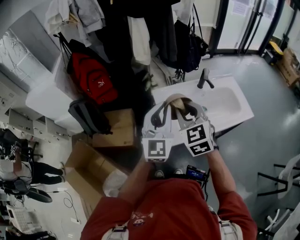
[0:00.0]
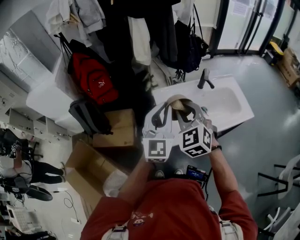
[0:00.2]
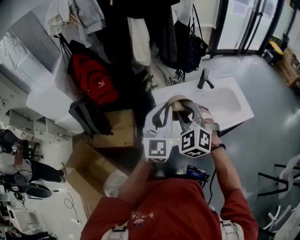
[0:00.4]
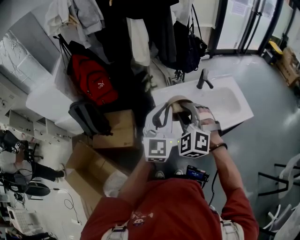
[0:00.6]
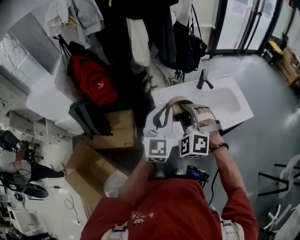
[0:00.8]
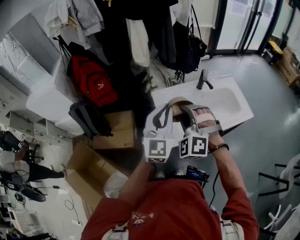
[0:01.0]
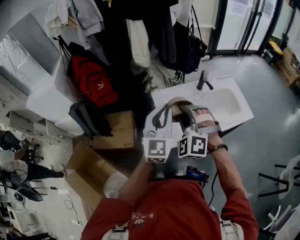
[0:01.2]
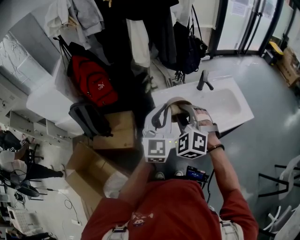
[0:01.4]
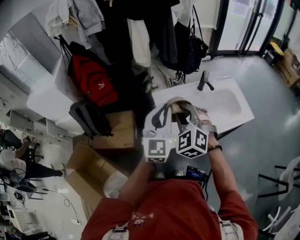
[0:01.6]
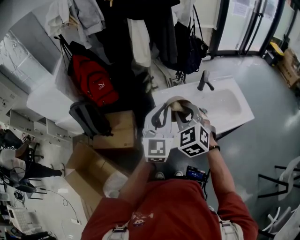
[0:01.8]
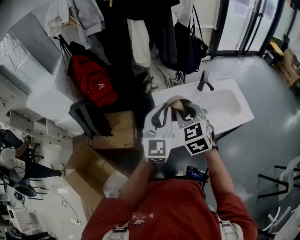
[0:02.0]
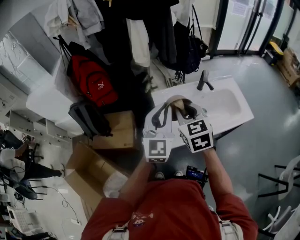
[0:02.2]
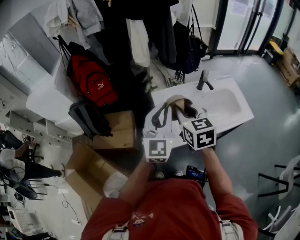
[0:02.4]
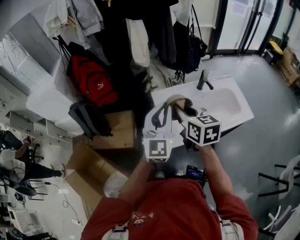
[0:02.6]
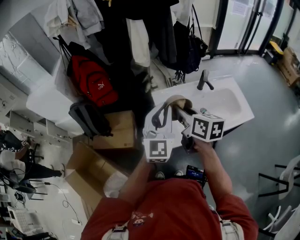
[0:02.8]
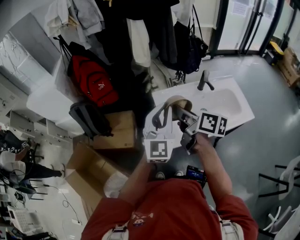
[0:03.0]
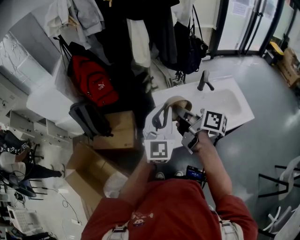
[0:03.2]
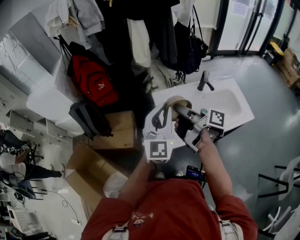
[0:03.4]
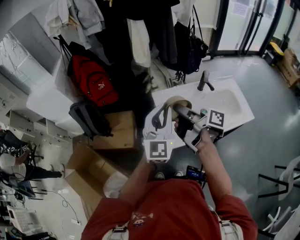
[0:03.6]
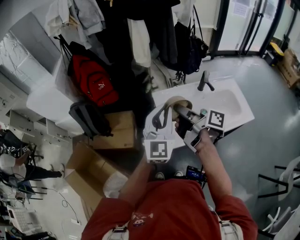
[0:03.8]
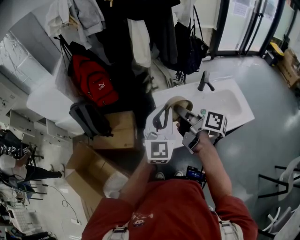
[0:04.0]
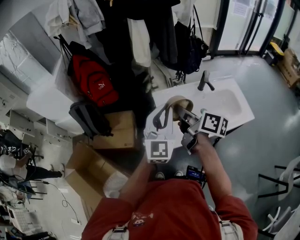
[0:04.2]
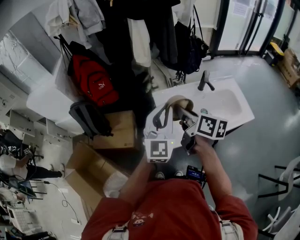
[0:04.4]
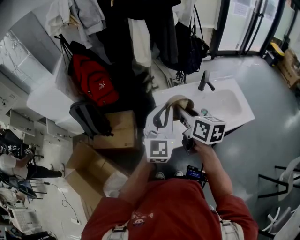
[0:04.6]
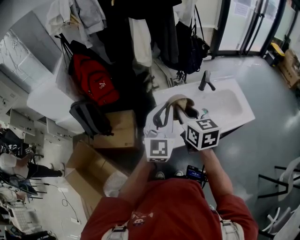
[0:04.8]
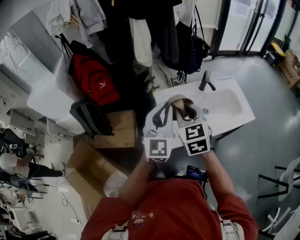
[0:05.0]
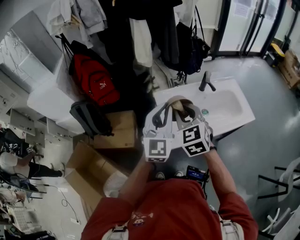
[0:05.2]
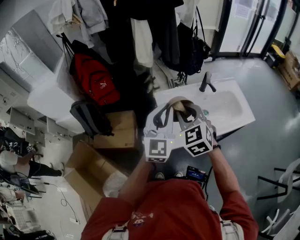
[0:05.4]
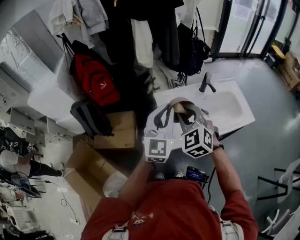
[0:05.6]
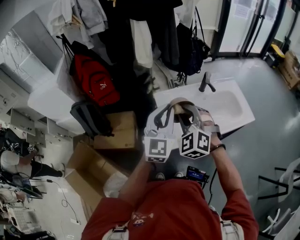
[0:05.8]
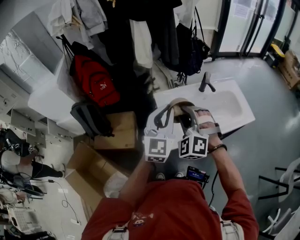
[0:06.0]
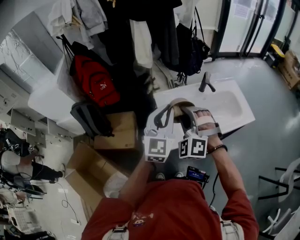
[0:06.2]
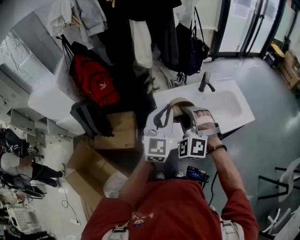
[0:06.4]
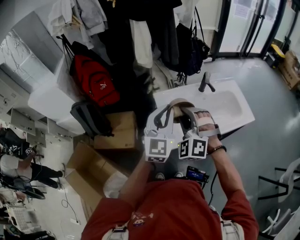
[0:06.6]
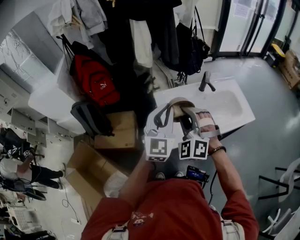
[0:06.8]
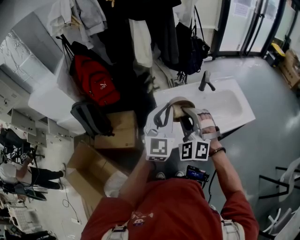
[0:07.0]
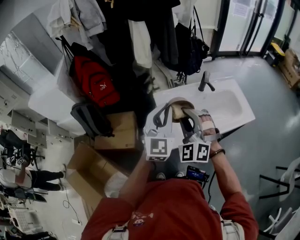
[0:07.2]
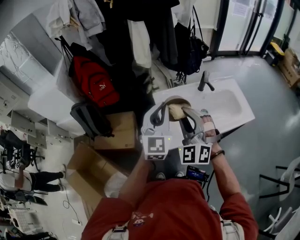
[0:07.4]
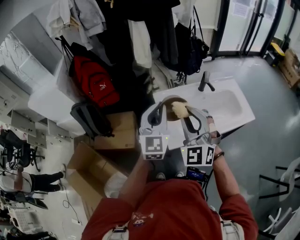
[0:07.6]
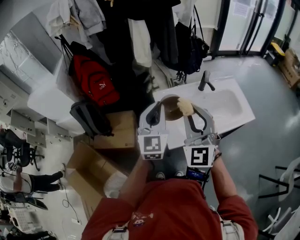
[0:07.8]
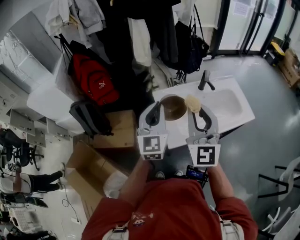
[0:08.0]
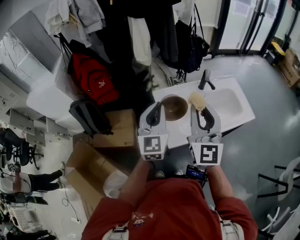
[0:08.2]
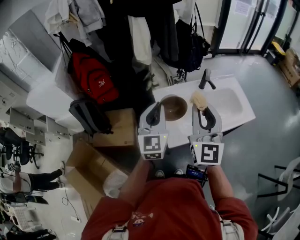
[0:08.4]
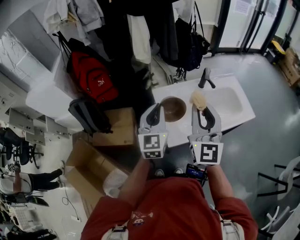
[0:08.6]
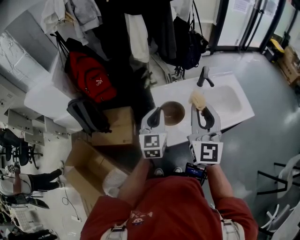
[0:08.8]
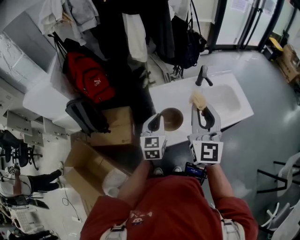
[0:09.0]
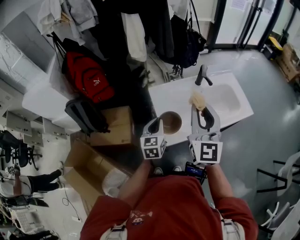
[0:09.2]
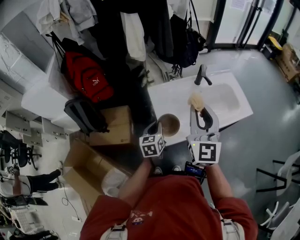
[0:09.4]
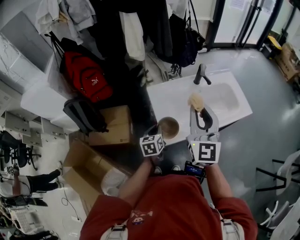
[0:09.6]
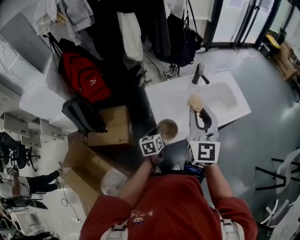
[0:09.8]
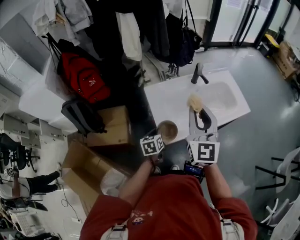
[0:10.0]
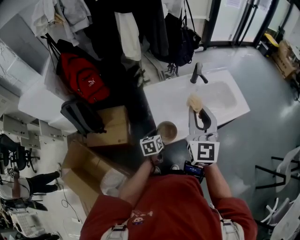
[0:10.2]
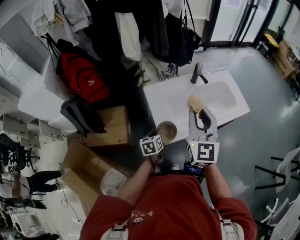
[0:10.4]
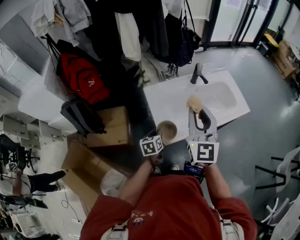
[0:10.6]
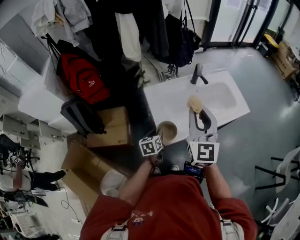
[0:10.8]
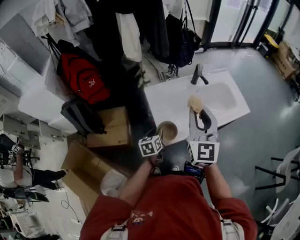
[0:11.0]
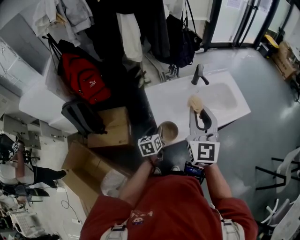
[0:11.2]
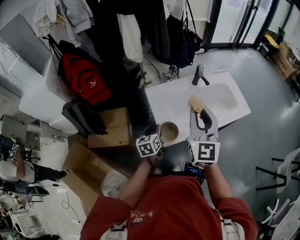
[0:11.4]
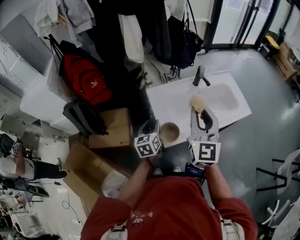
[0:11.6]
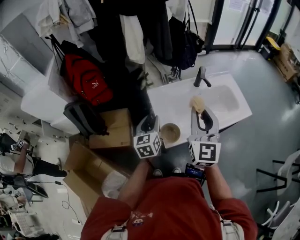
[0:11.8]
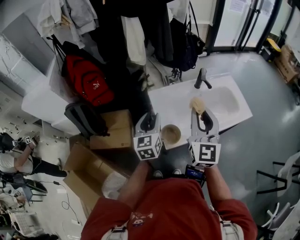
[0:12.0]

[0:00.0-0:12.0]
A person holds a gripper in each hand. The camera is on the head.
0:00.0 to 0:01.6: The right gripper swivels roughly 30 degrees.
0:01.6 to 0:03.0: The right gripper rotates around the line of its fingers by about 90 degrees, clockwise from behind.
0:04.4 to 0:06.0: The right gripper twists about 110 degrees counterclockwise, seen from behind.
0:06.0 to 0:07.6: The right gripper shifts some 5 cm upward, and changes its angle by approximately 30 degrees.
0:07.6 to 0:09.0: The right gripper heads to the right, covering about 5 cm, and swivels about 40 degrees; the left gripper heads downward, covering some 15 cm, and rotates about 20 degrees.
0:09.0 to 0:10.4: The left gripper heads downward, covering some 15 cm, and changes its angle by some 40 degrees.
0:10.4 to 0:12.0: The left gripper is displaced upward by approximately 20 cm, swivels some 30 degrees, and opens up.

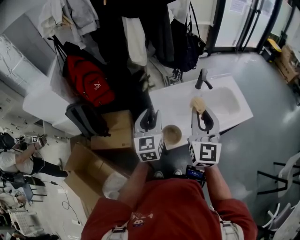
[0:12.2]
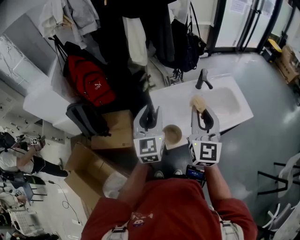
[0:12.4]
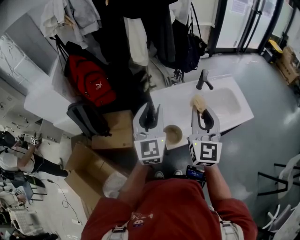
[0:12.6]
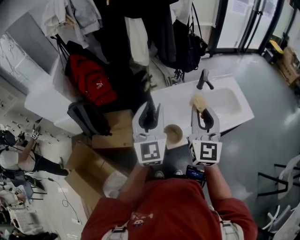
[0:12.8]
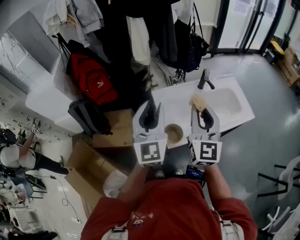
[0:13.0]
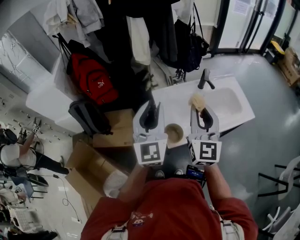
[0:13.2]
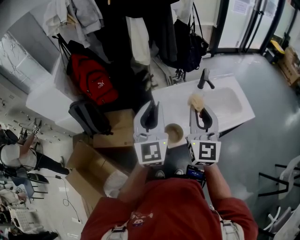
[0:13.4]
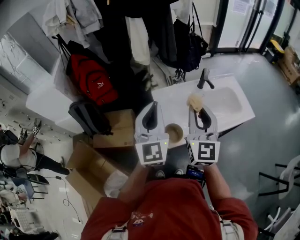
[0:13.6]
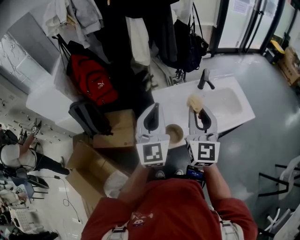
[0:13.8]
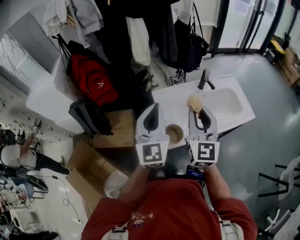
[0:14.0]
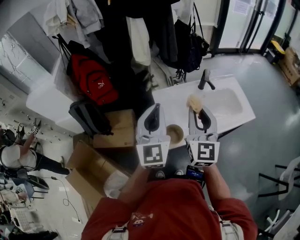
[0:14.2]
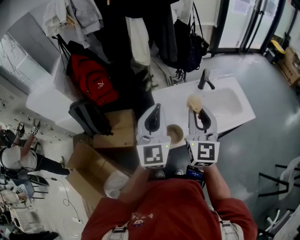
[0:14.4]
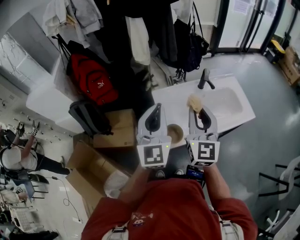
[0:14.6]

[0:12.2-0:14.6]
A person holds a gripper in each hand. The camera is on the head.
0:12.2 to 0:13.4: The left gripper goes some 10 cm upward.
0:13.4 to 0:14.6: The grippers move only a little.

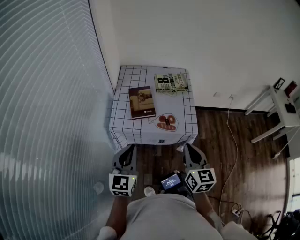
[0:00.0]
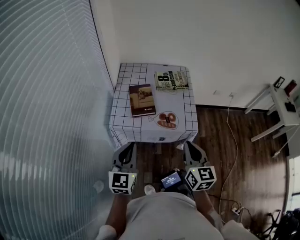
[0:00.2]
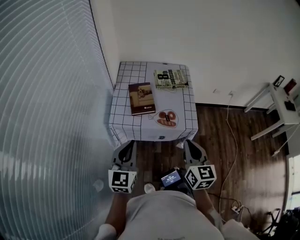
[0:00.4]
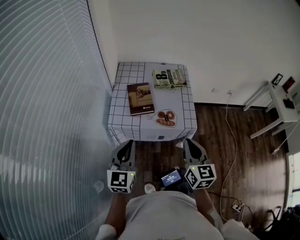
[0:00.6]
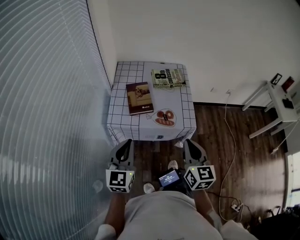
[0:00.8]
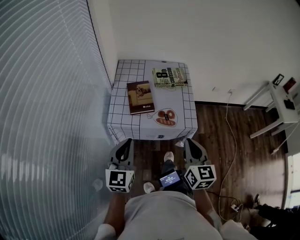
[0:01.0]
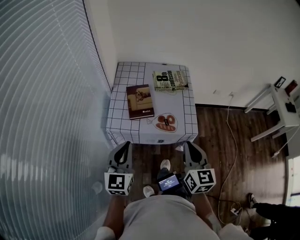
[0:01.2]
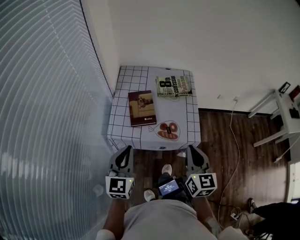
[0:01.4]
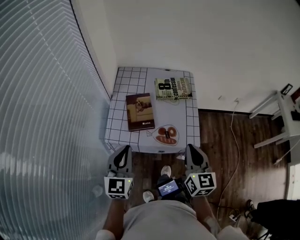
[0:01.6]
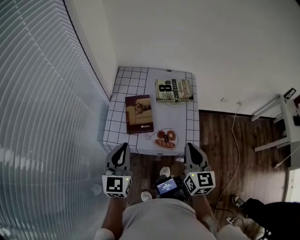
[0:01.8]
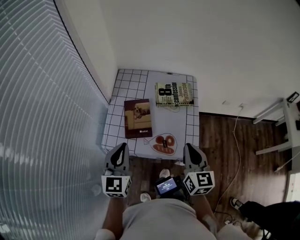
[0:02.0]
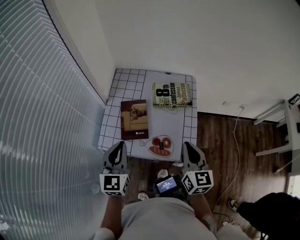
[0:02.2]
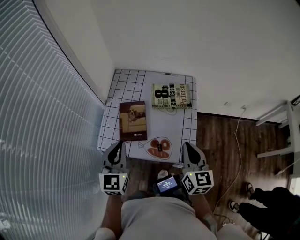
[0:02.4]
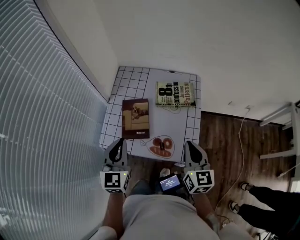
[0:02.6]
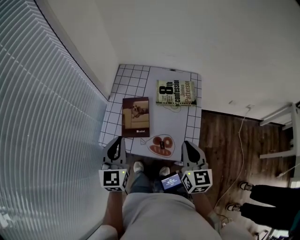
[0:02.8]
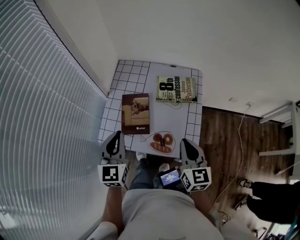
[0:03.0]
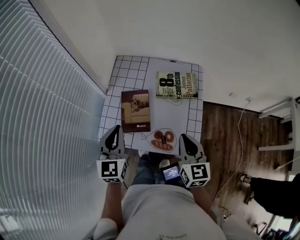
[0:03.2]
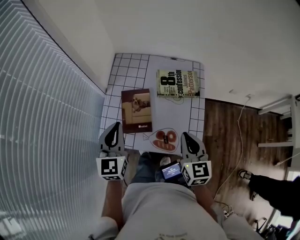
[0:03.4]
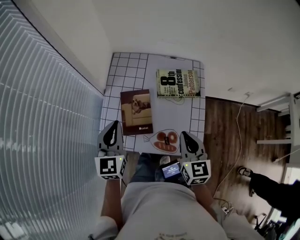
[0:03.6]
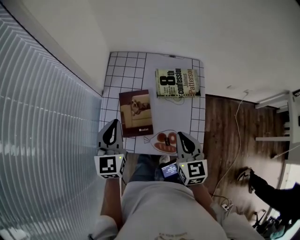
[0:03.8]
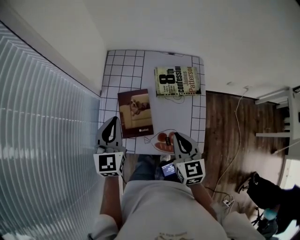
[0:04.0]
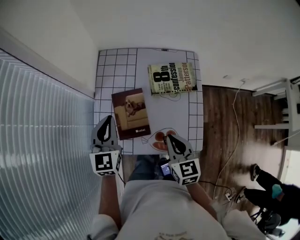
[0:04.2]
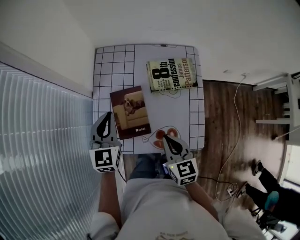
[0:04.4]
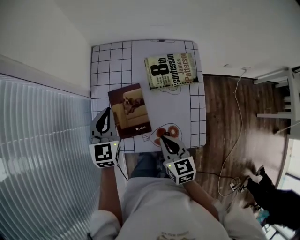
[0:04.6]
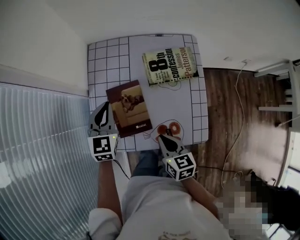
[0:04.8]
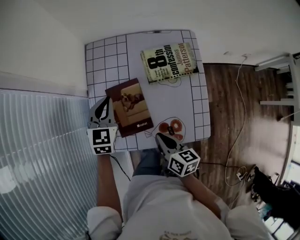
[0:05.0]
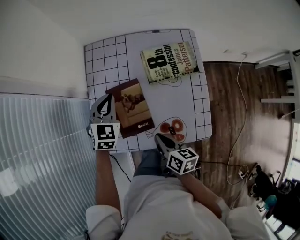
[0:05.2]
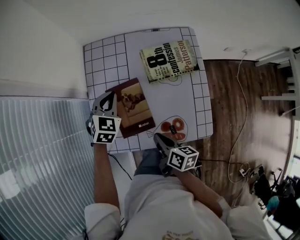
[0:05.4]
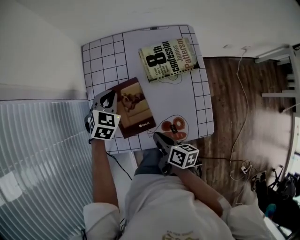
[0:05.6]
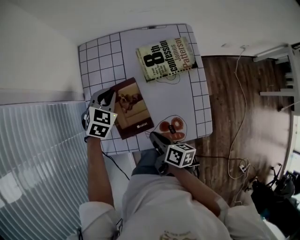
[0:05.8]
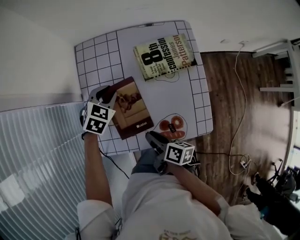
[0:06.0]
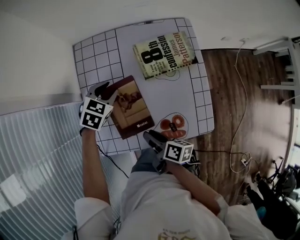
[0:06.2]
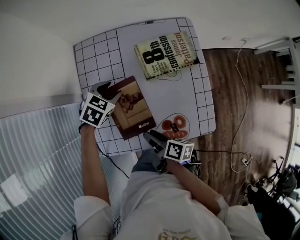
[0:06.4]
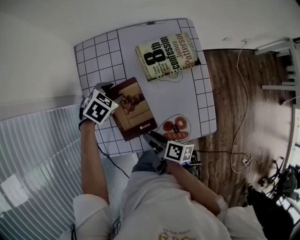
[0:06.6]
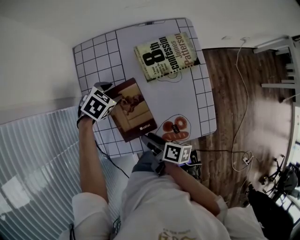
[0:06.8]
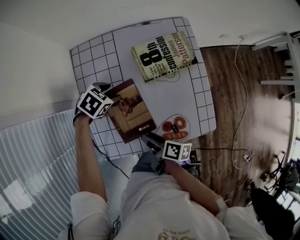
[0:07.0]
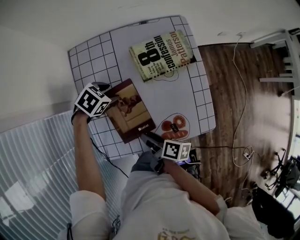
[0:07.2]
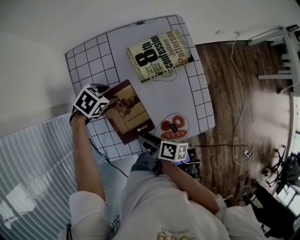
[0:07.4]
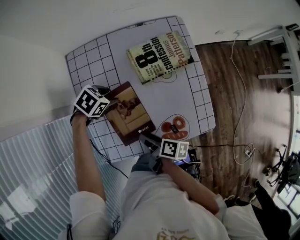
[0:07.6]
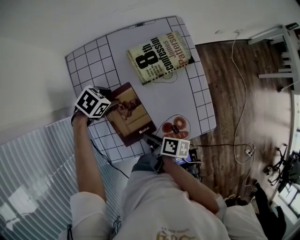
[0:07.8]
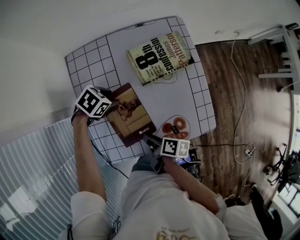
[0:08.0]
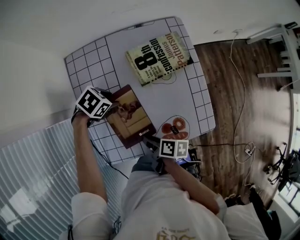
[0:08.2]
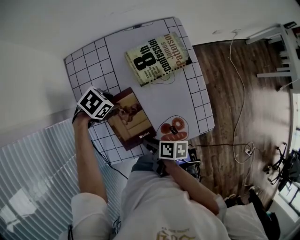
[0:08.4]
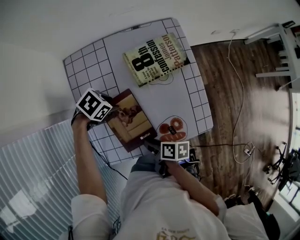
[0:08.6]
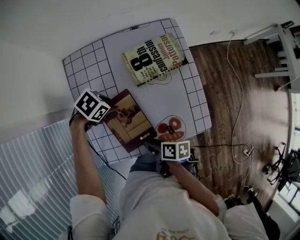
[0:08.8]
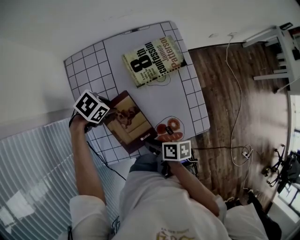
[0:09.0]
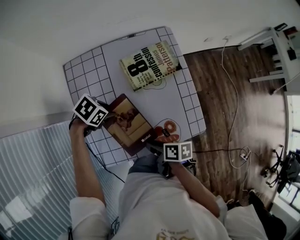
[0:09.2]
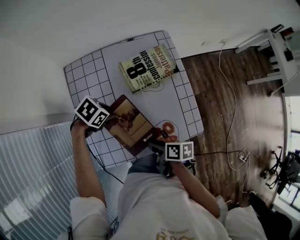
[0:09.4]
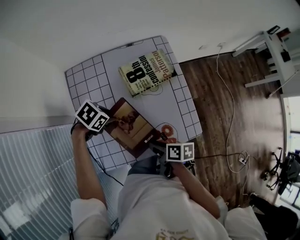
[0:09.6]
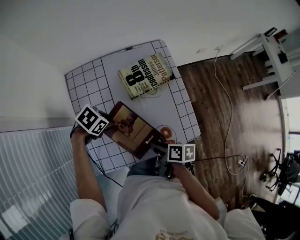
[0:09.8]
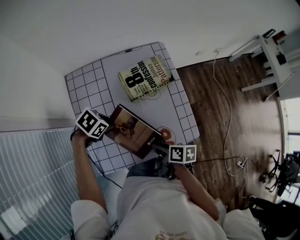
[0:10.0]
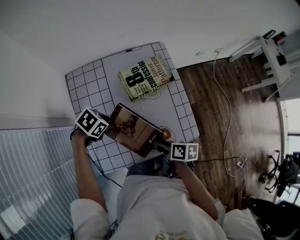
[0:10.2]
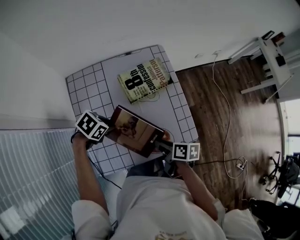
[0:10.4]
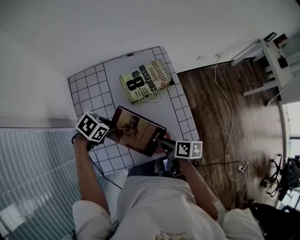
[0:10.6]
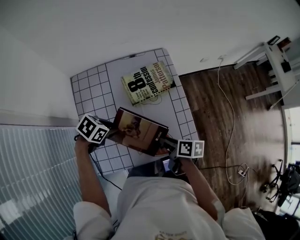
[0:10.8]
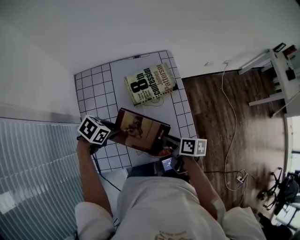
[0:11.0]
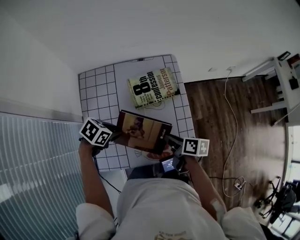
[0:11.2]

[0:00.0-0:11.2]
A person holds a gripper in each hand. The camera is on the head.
0:00.0 to 0:01.6: Both grippers travel together forward, roughly 10 cm.
0:01.6 to 0:03.2: Both grippers move forward, about 15 cm.
0:03.2 to 0:04.8: The right gripper is displaced downward and to the left by approximately 15 cm, and changes its angle by roughly 30 degrees. The left gripper goes roughly 20 cm forward and downward.
0:04.8 to 0:06.4: The right gripper moves downward and to the left, some 10 cm, twists approximately 50 degrees clockwise, seen from behind, and opens; the left gripper moves downward and forward, about 15 cm, tilts its fingers some 30 degrees downward, and opens.
0:06.4 to 0:08.0: The left gripper changes its angle by approximately 30 degrees.
0:08.0 to 0:09.6: The right gripper moves some 10 cm; the left gripper shifts by some 5 cm.
0:09.6 to 0:11.2: The left gripper moves approximately 5 cm. Meanwhile the right gripper changes place by some 15 cm.
